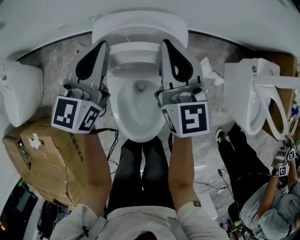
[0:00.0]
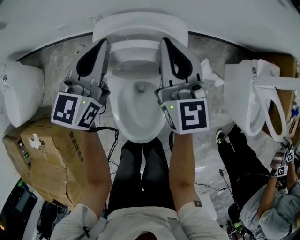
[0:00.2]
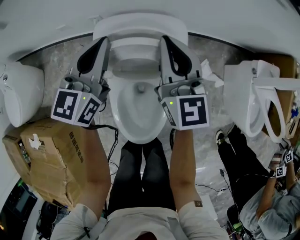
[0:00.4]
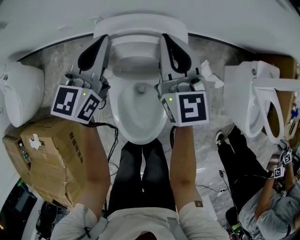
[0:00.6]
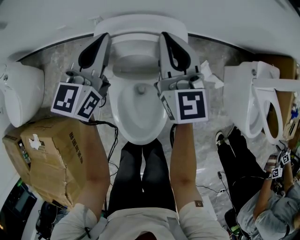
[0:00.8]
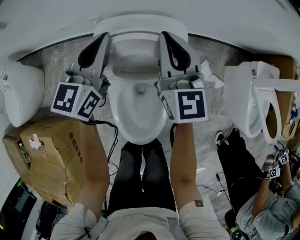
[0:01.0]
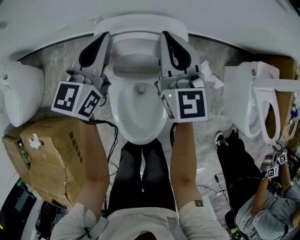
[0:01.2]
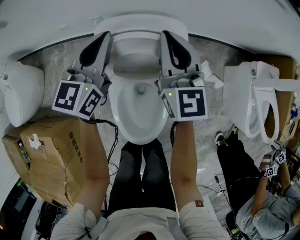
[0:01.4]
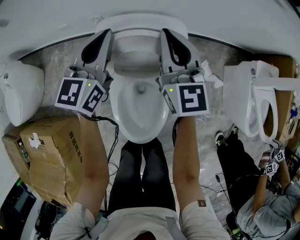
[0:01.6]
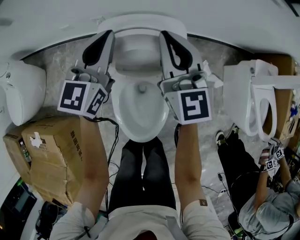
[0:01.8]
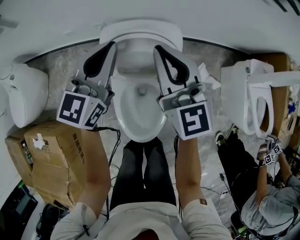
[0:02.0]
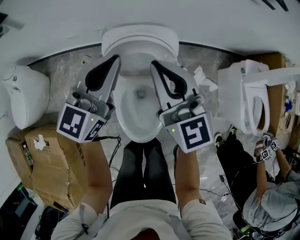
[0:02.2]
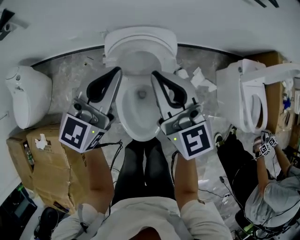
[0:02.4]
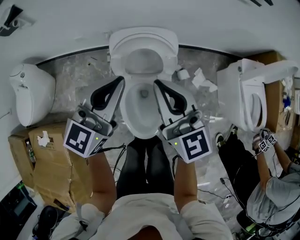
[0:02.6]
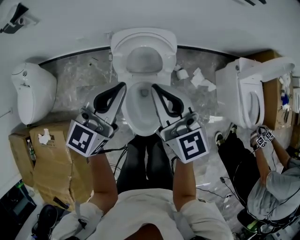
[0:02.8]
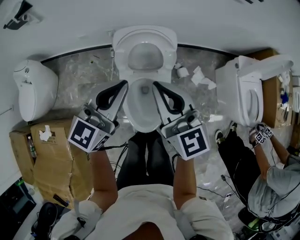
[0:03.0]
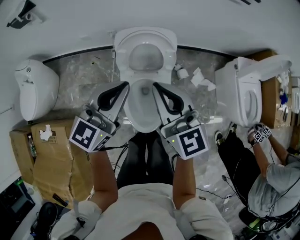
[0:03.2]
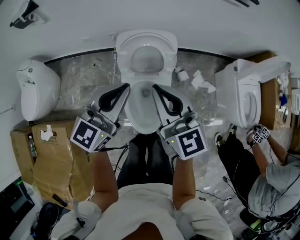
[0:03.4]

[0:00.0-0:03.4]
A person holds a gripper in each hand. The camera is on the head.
0:00.0 to 0:01.6: The grippers move only a little.
0:01.6 to 0:03.4: The two grippers go some 35 cm backward and upward.

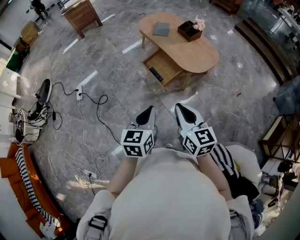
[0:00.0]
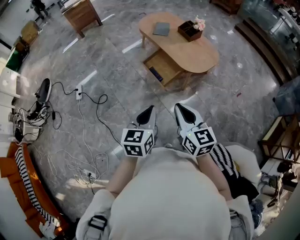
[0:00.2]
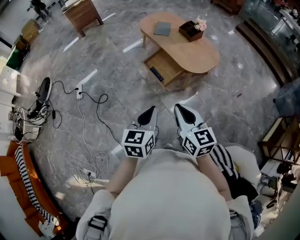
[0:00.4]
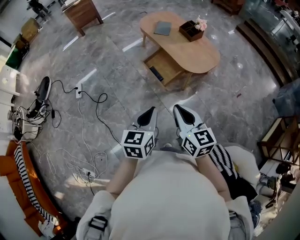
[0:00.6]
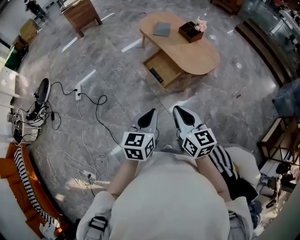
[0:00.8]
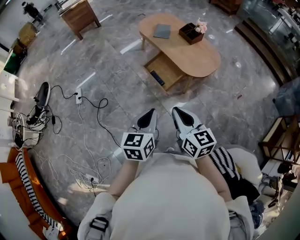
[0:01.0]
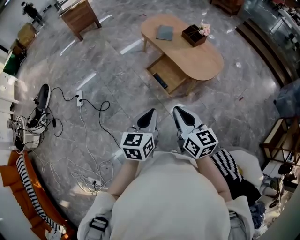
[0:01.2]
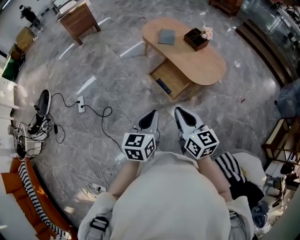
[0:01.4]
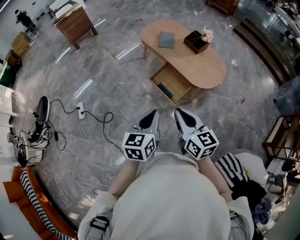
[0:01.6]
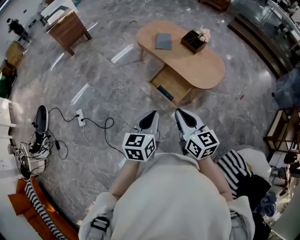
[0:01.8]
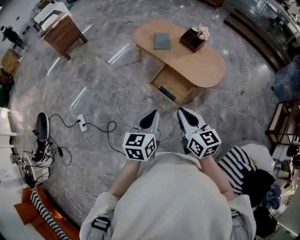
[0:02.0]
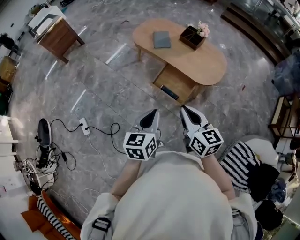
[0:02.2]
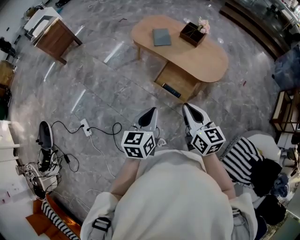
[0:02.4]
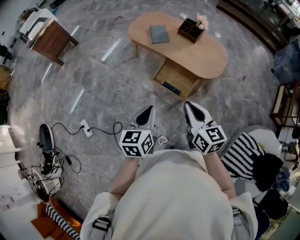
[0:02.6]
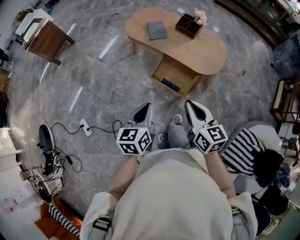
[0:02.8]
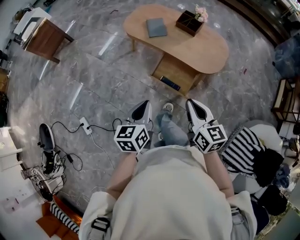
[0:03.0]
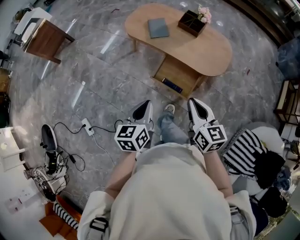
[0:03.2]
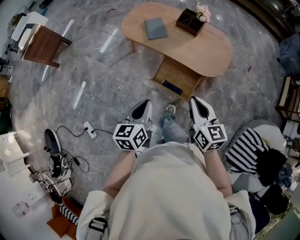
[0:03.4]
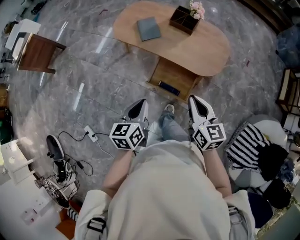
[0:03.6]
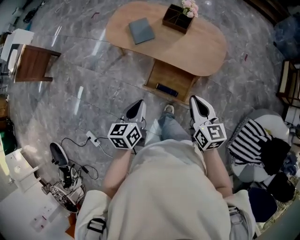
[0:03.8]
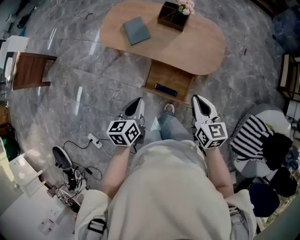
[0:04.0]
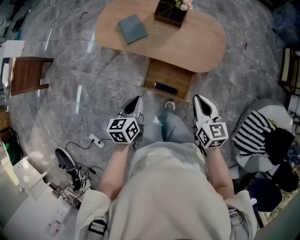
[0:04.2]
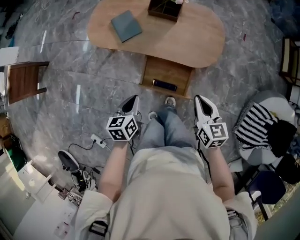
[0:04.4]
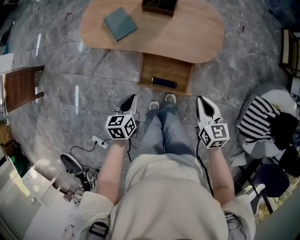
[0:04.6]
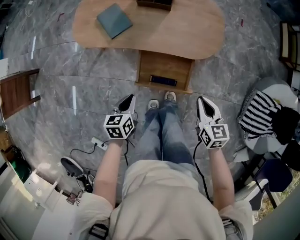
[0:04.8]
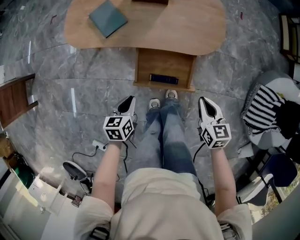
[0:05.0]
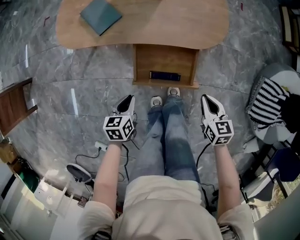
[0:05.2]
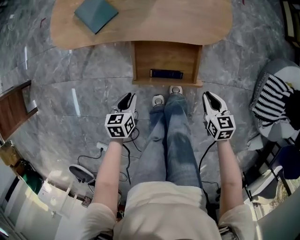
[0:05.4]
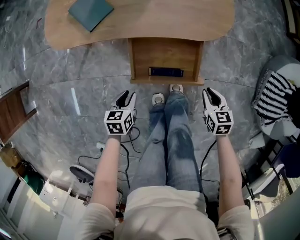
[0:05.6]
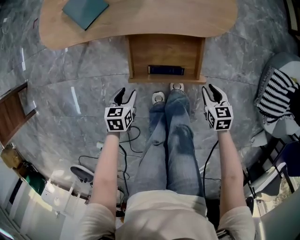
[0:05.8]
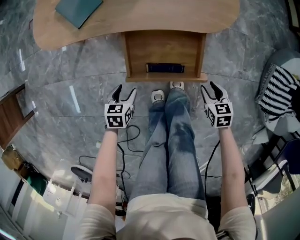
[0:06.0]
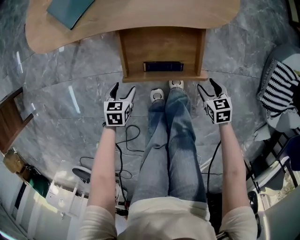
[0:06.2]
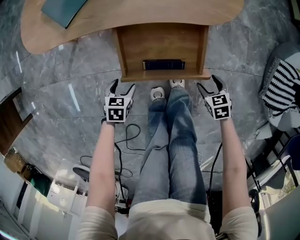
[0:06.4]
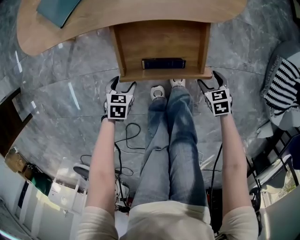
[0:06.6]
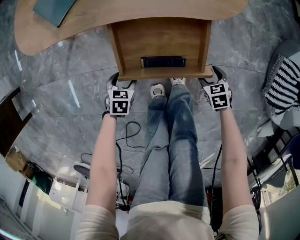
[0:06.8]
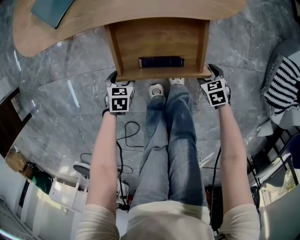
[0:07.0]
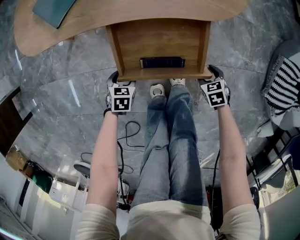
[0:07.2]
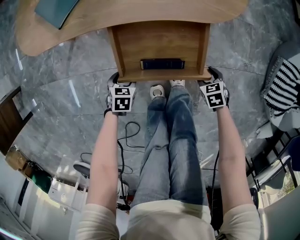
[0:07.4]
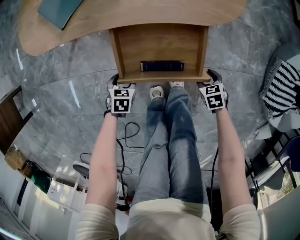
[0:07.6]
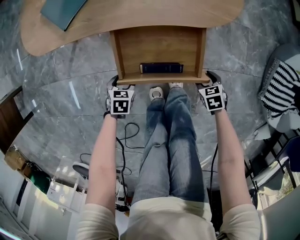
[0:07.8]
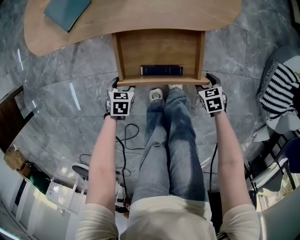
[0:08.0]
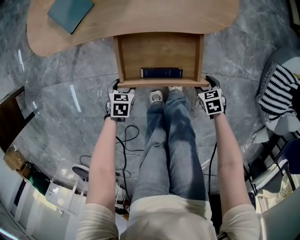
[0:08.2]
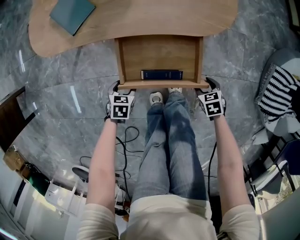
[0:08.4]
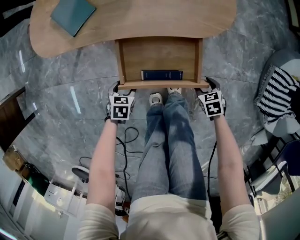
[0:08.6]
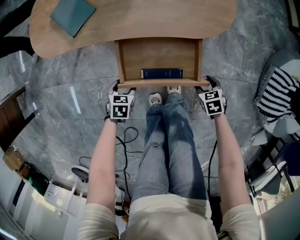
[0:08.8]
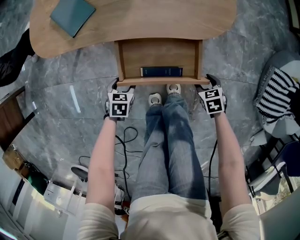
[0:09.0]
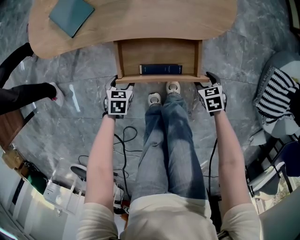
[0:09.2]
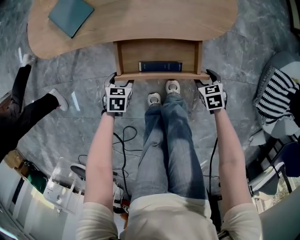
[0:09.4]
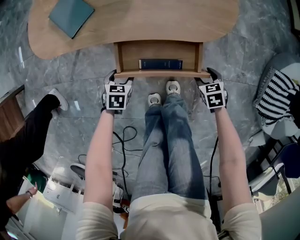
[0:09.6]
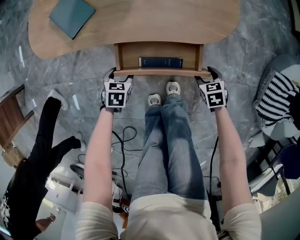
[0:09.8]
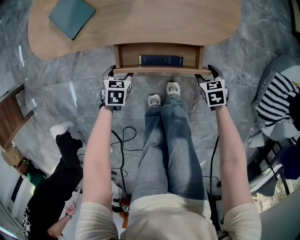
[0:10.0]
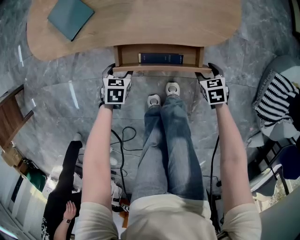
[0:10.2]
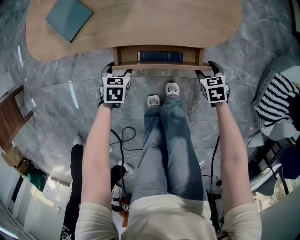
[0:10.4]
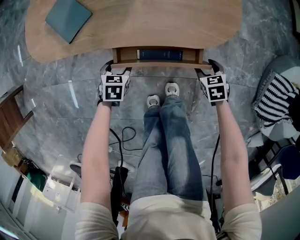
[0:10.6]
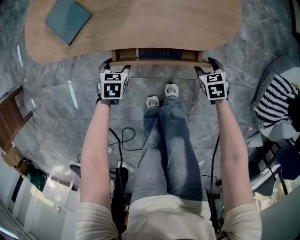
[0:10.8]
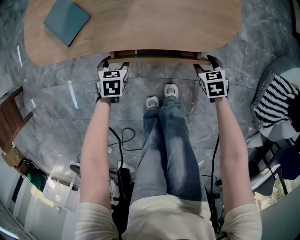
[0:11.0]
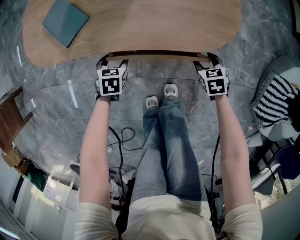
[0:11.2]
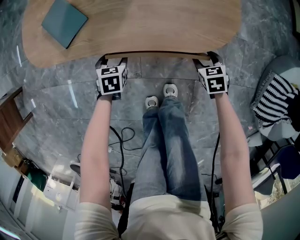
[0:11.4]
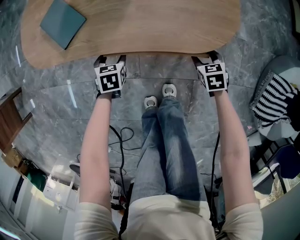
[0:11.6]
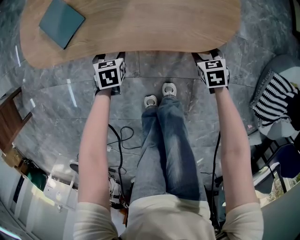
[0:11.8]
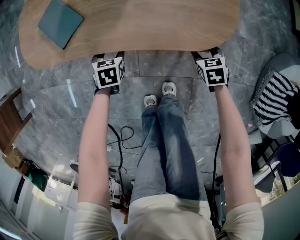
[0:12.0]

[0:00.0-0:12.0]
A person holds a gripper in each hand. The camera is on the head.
0:00.0 to 0:01.6: The two grippers go about 20 cm forward and to the left.
0:01.6 to 0:03.0: The right gripper travels forward and to the left by roughly 15 cm, and changes its angle by approximately 20 degrees; the left gripper travels forward and to the left by about 20 cm.
0:03.0 to 0:04.4: The right gripper goes roughly 25 cm forward, downward and to the right, and rotates some 20 degrees; the left gripper is displaced forward and downward by about 30 cm, and rotates some 20 degrees.
0:04.4 to 0:06.0: The grippers both shift downward by some 35 cm. The right gripper rotates approximately 30 degrees, and opens its fingers. Meanwhile the left gripper turns by some 30 degrees, and opens its fingers.
0:06.0 to 0:07.6: Both grippers travel together downward, approximately 10 cm.
0:07.6 to 0:09.0: Both grippers move upward, approximately 5 cm.
0:09.0 to 0:10.4: The two grippers go approximately 10 cm forward.
0:10.4 to 0:12.0: Both grippers travel together forward, roughly 10 cm.

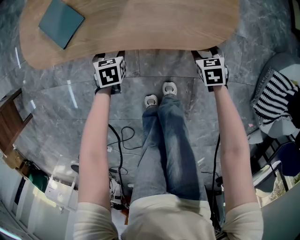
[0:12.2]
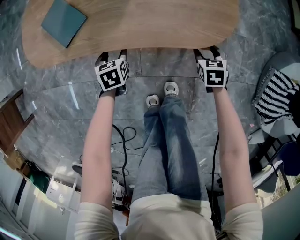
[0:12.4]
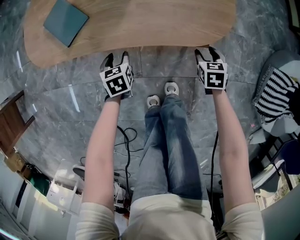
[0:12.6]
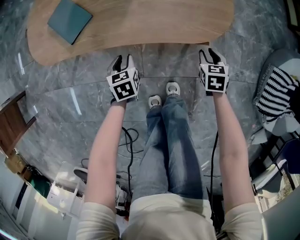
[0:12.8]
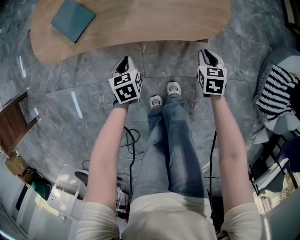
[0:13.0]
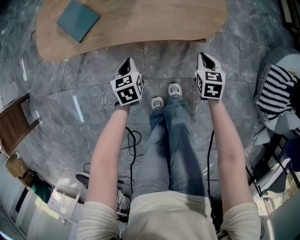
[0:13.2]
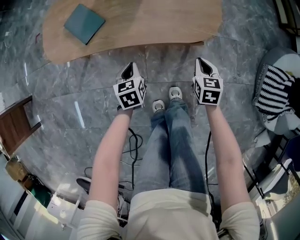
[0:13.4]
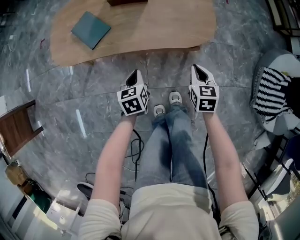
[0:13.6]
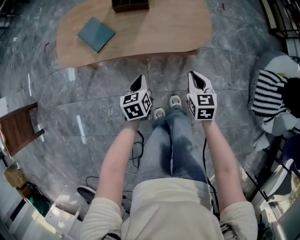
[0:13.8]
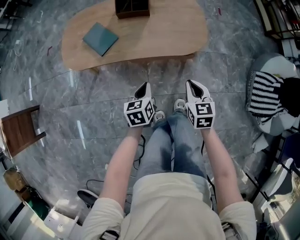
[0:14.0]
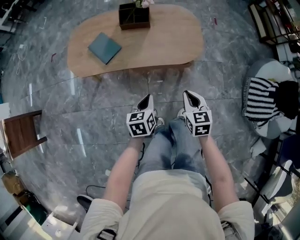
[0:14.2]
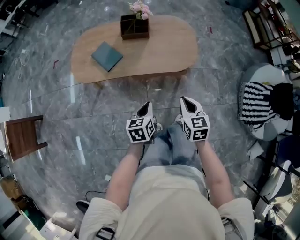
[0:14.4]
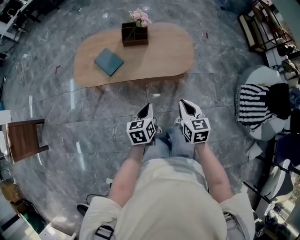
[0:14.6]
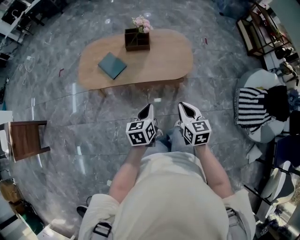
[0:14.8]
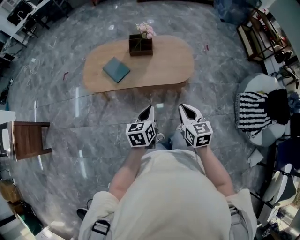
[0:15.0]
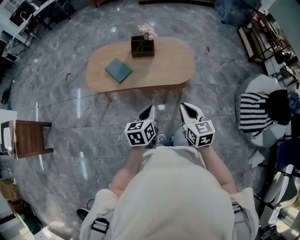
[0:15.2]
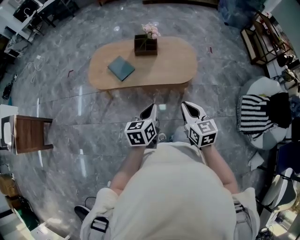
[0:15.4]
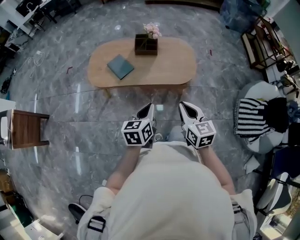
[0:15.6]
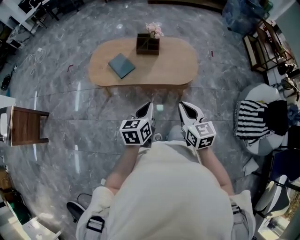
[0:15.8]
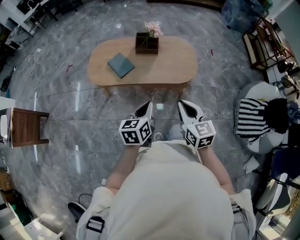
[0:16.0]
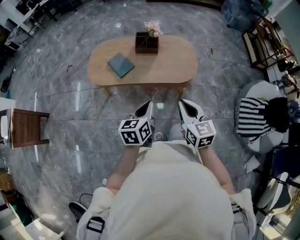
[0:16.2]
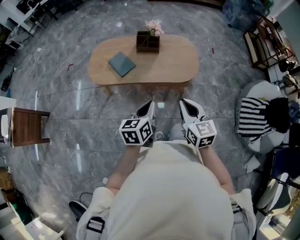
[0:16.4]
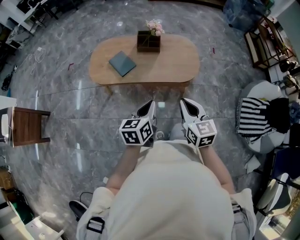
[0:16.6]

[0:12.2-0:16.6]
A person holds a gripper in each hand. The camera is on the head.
0:12.2 to 0:13.6: The two grippers go approximately 20 cm upward and backward. The left gripper changes its angle by approximately 20 degrees, and closes. The right gripper rotates about 30 degrees, and closes its fingers.
0:13.6 to 0:15.2: Both grippers travel together upward and backward, approximately 35 cm. The right gripper changes its angle by about 20 degrees.
0:15.2 to 0:16.6: There are only small adjustments of the grippers.

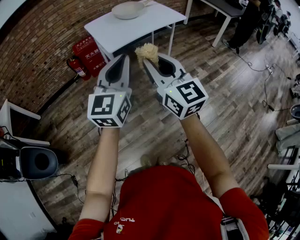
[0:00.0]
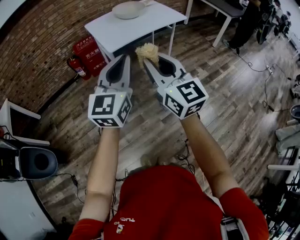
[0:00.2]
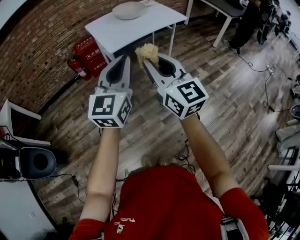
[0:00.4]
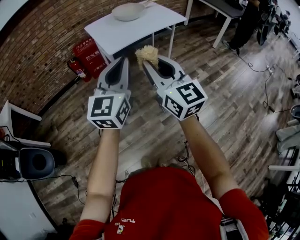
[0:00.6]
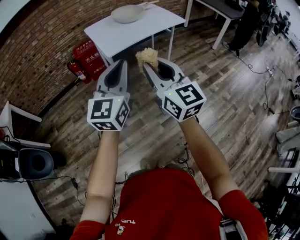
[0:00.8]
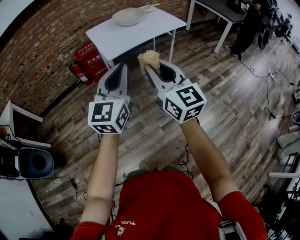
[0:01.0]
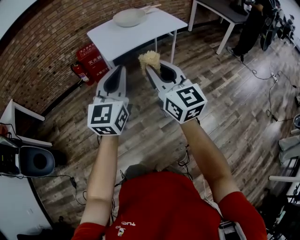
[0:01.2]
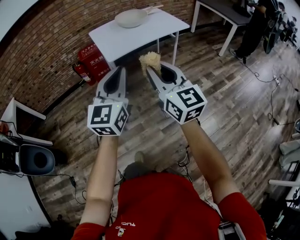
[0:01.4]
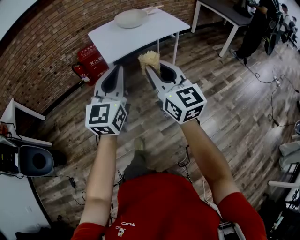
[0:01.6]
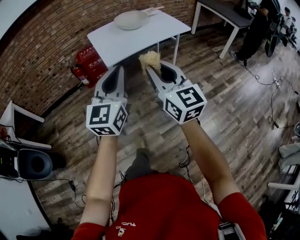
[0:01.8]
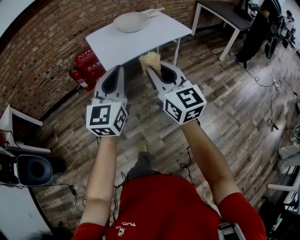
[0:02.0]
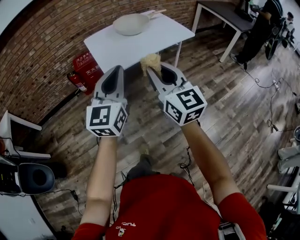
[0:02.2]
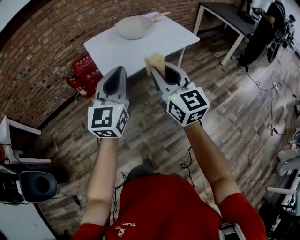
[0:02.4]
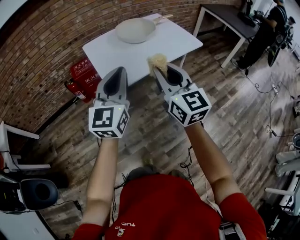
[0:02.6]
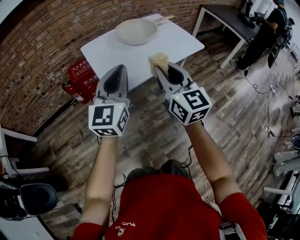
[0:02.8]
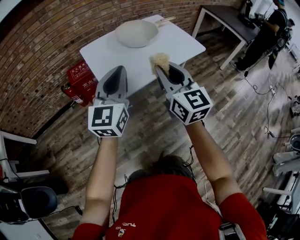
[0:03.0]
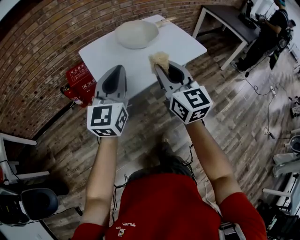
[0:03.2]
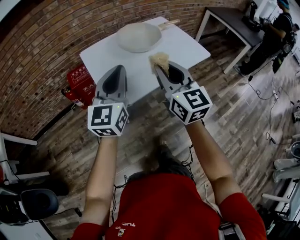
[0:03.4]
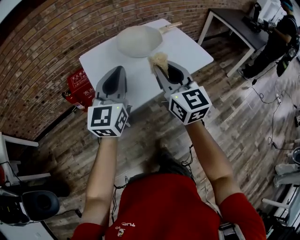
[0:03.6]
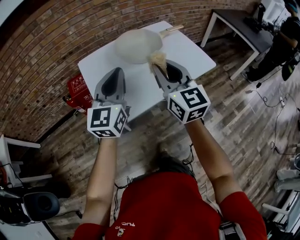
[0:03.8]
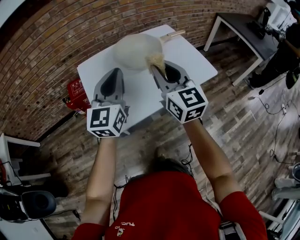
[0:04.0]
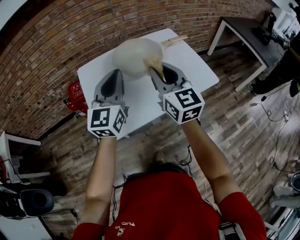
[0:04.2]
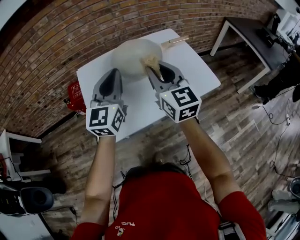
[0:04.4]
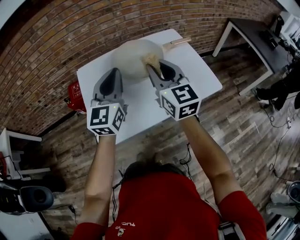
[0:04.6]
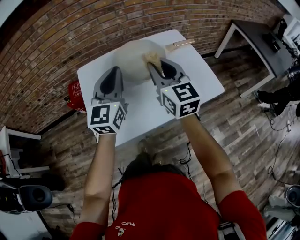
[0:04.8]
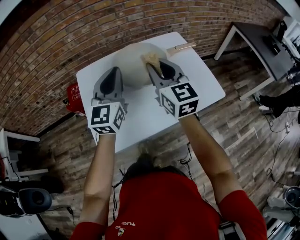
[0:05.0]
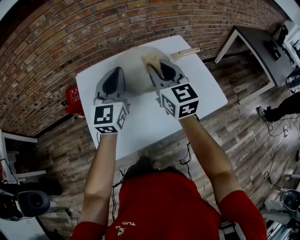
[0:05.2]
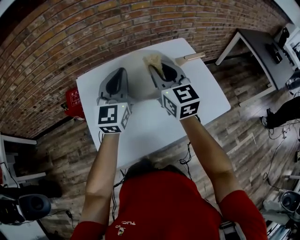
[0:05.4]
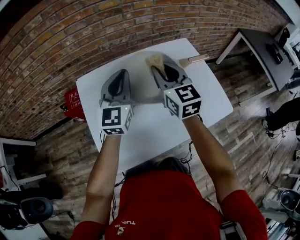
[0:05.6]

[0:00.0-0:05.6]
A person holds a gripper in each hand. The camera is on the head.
0:00.0 to 0:01.4: The two grippers go some 5 cm to the right.
0:01.4 to 0:02.8: Both grippers travel together forward, approximately 35 cm.
0:02.8 to 0:04.2: The grippers both shift forward by about 30 cm.
0:04.2 to 0:05.6: Both grippers travel together forward, some 20 cm.
